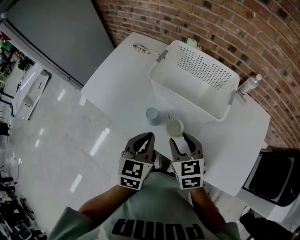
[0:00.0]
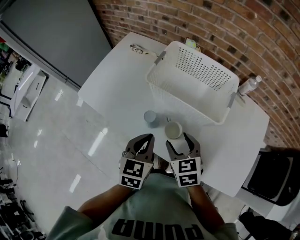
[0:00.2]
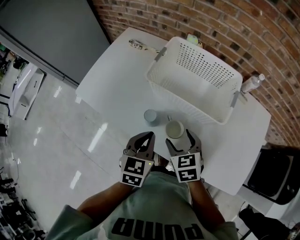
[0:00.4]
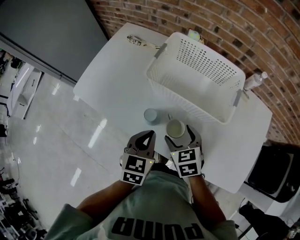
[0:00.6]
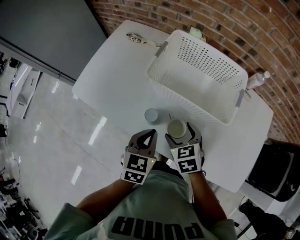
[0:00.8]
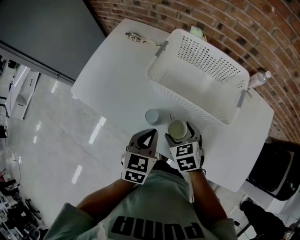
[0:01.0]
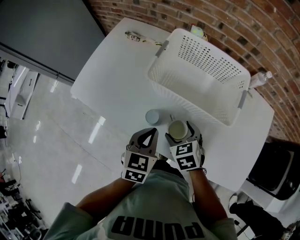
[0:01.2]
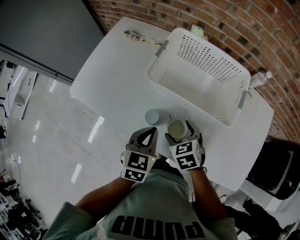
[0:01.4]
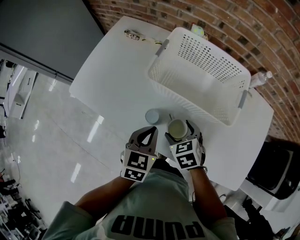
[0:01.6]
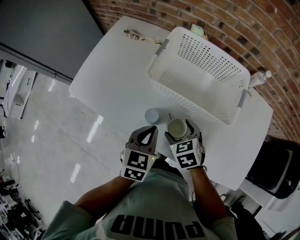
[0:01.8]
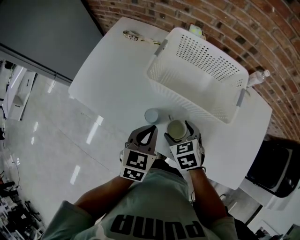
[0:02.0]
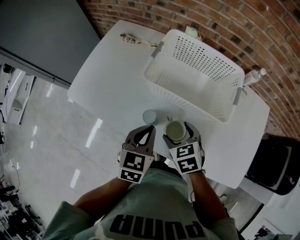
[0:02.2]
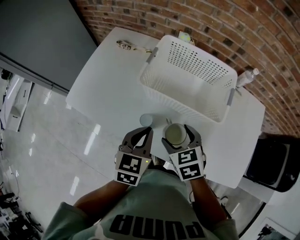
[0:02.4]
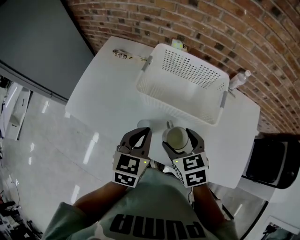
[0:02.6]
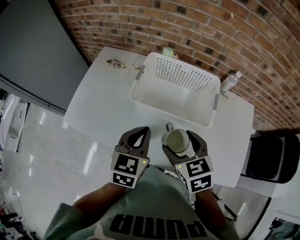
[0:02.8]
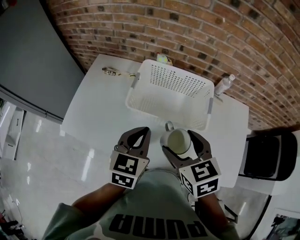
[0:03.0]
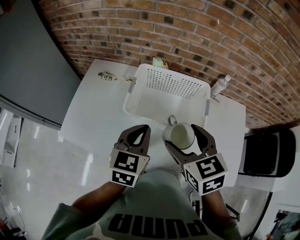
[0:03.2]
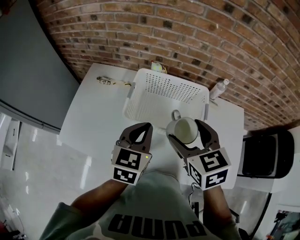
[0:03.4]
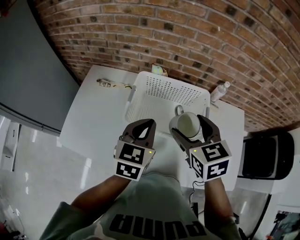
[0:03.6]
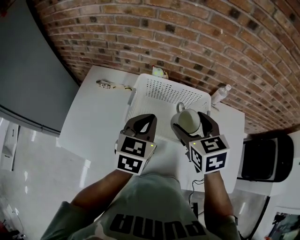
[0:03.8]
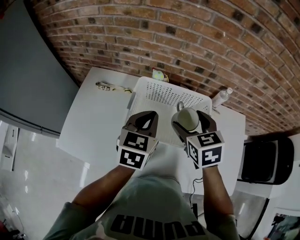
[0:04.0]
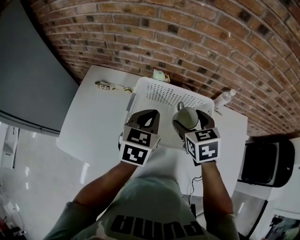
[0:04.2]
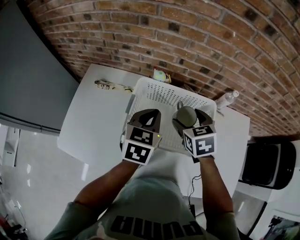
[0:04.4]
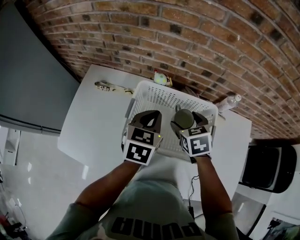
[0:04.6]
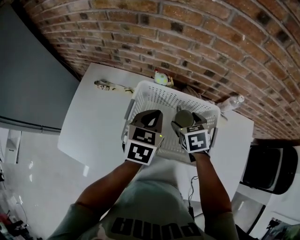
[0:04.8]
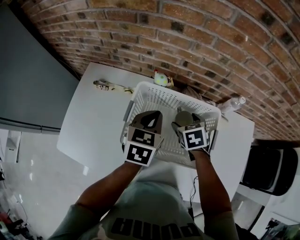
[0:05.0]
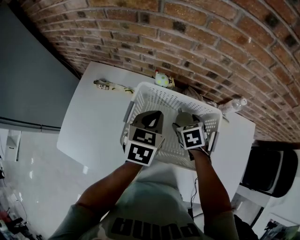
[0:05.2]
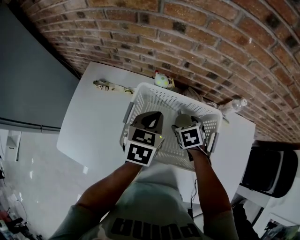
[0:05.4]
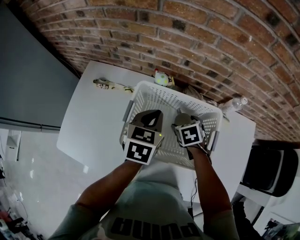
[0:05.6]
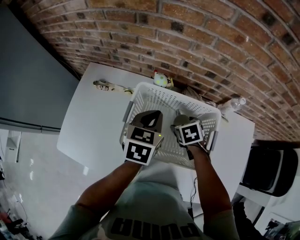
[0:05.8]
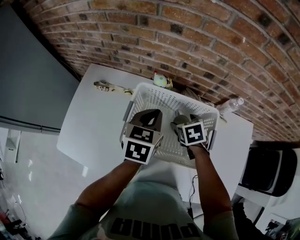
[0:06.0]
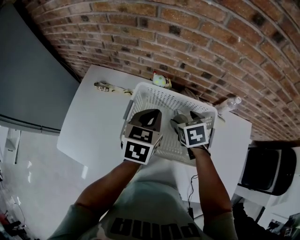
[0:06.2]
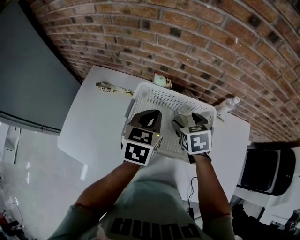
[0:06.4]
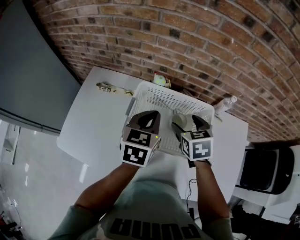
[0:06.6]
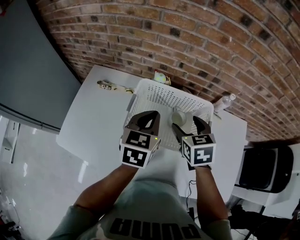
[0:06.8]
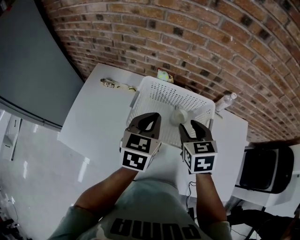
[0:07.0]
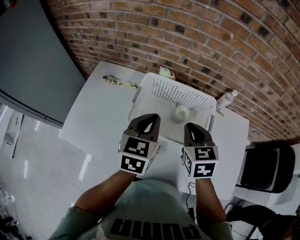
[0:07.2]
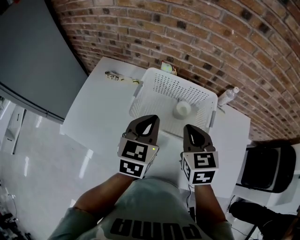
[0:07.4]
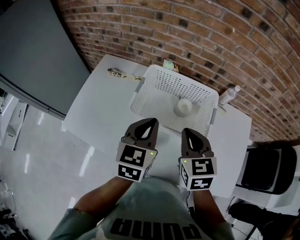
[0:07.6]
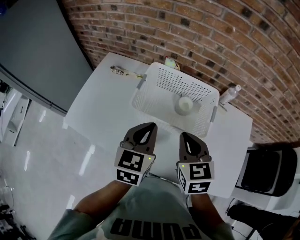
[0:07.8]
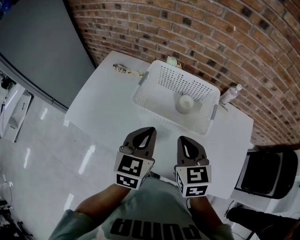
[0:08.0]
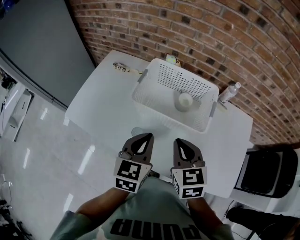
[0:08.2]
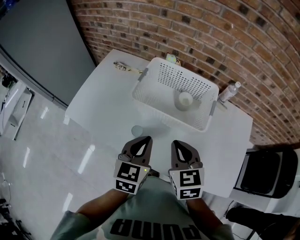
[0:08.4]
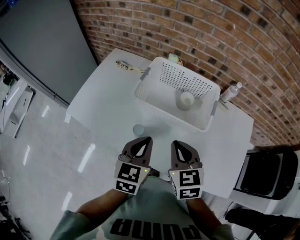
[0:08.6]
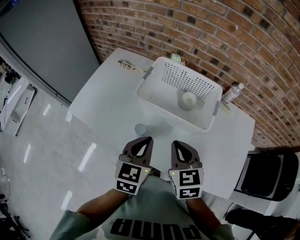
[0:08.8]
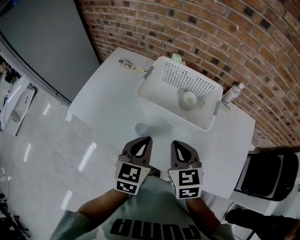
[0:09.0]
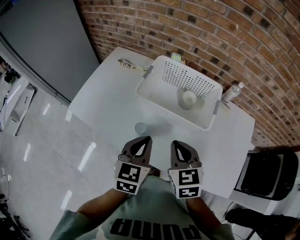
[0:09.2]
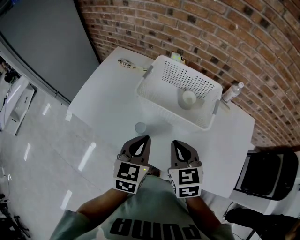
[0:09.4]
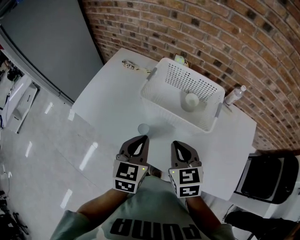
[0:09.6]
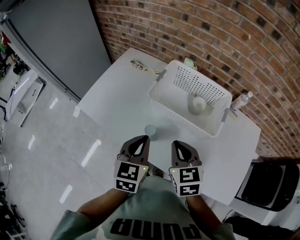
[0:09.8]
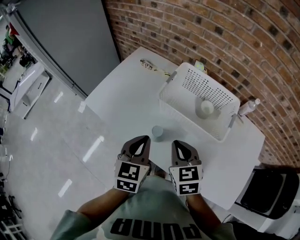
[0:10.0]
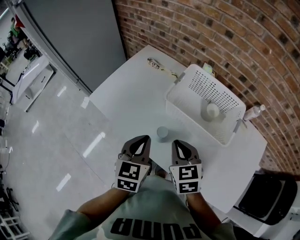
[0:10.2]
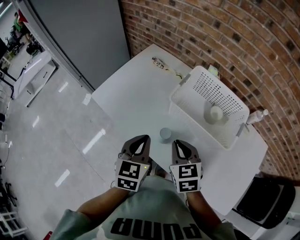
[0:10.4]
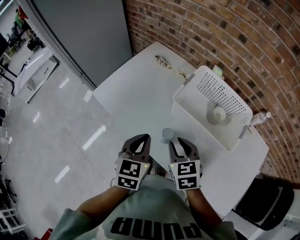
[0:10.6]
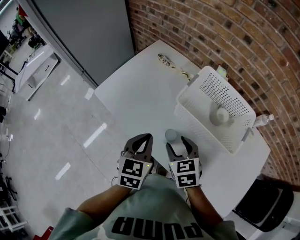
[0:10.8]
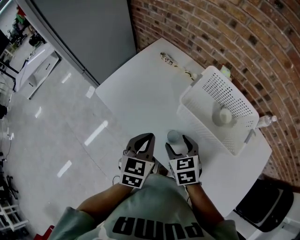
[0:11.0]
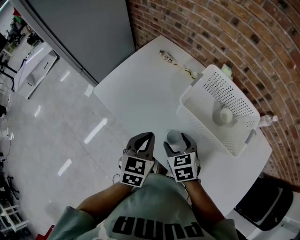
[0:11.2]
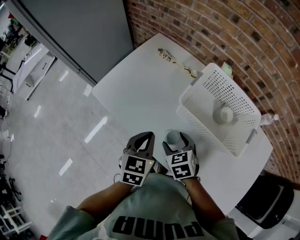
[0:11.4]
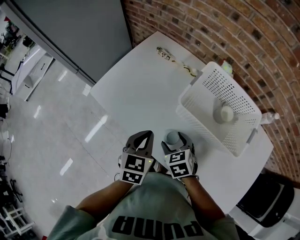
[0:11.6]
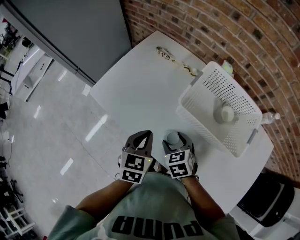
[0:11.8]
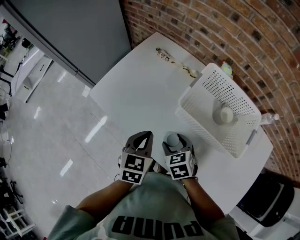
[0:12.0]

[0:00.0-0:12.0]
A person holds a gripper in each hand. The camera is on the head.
0:00.0 to 0:01.6: The grippers both shift downward and forward by approximately 10 cm. The right gripper opens its fingers.
0:01.6 to 0:03.0: The left gripper goes some 15 cm upward. Meanwhile the right gripper is displaced upward by roughly 20 cm, and swivels about 20 degrees.
0:03.0 to 0:04.4: The two grippers go roughly 20 cm forward.
0:04.4 to 0:06.0: The right gripper goes about 10 cm downward.
0:06.0 to 0:07.6: The right gripper moves backward and upward, about 25 cm, rotates about 30 degrees, and closes up, while the left gripper shifts some 15 cm backward.
0:07.6 to 0:09.0: The right gripper is displaced backward by about 10 cm. Meanwhile the left gripper heads backward and downward, covering roughly 15 cm.
0:09.0 to 0:10.4: Both grippers move to the left, roughly 10 cm.
0:10.4 to 0:12.0: The right gripper shifts roughly 10 cm downward, and opens. The left gripper goes roughly 10 cm downward and forward.

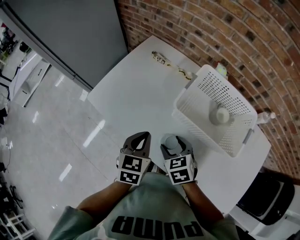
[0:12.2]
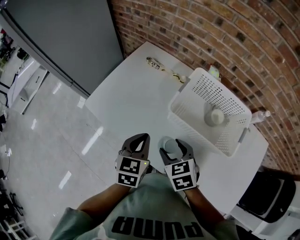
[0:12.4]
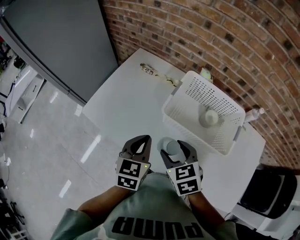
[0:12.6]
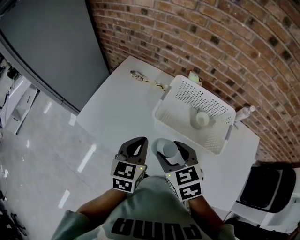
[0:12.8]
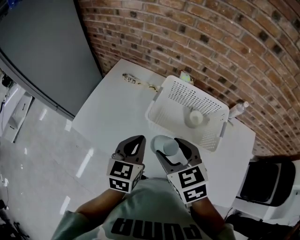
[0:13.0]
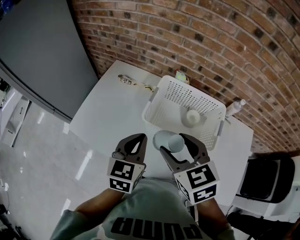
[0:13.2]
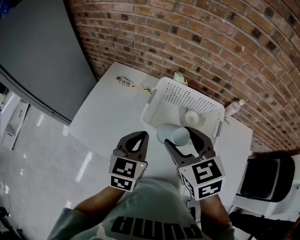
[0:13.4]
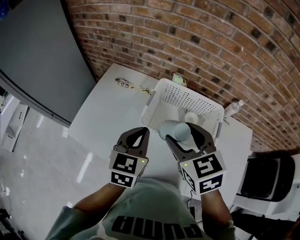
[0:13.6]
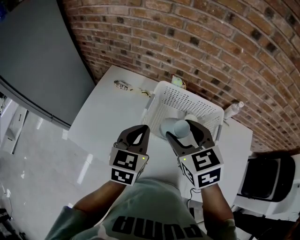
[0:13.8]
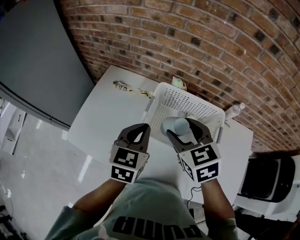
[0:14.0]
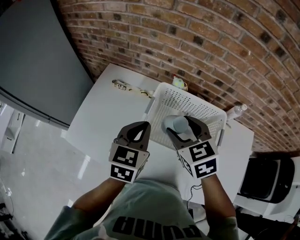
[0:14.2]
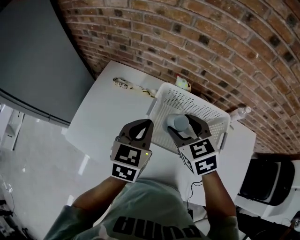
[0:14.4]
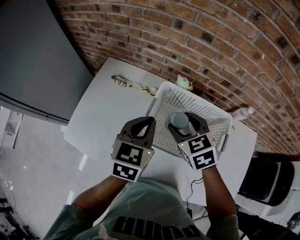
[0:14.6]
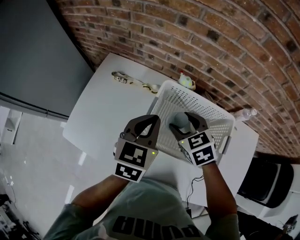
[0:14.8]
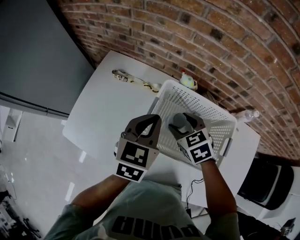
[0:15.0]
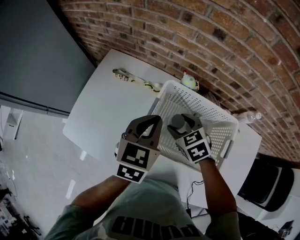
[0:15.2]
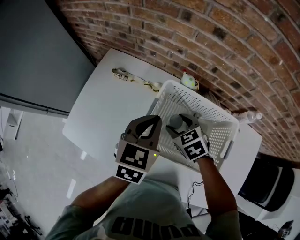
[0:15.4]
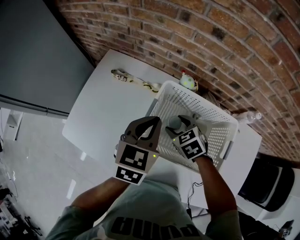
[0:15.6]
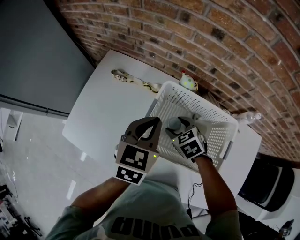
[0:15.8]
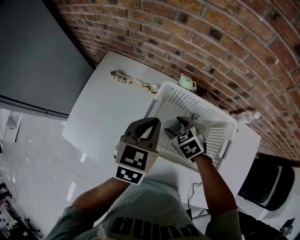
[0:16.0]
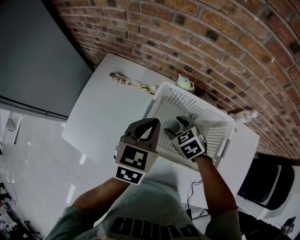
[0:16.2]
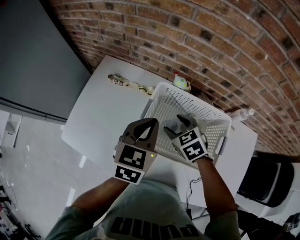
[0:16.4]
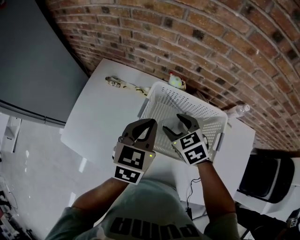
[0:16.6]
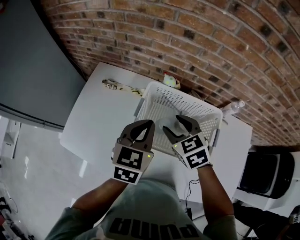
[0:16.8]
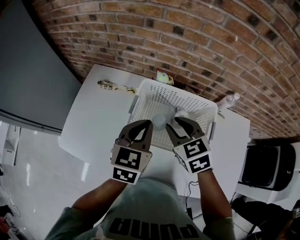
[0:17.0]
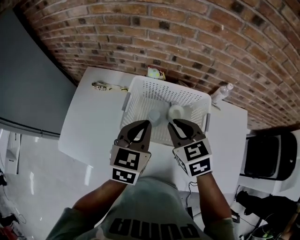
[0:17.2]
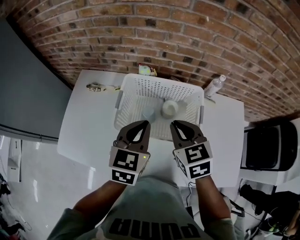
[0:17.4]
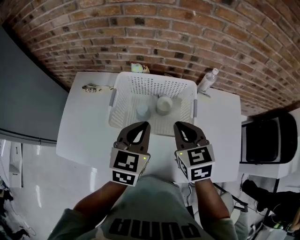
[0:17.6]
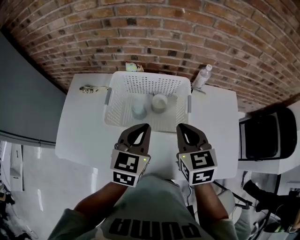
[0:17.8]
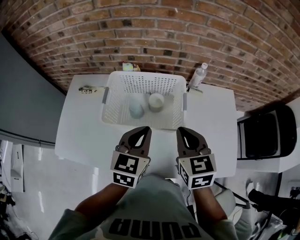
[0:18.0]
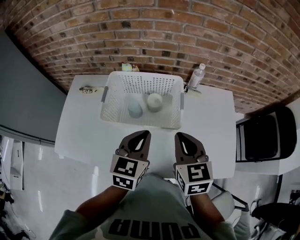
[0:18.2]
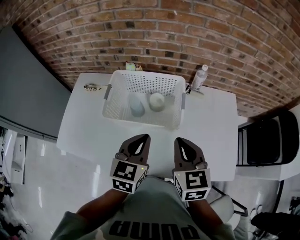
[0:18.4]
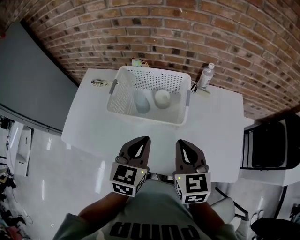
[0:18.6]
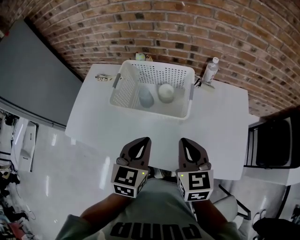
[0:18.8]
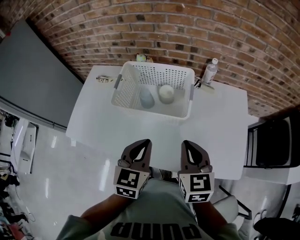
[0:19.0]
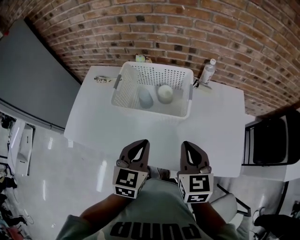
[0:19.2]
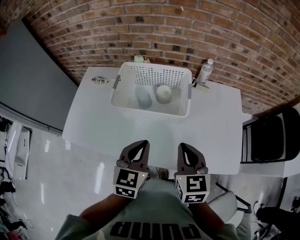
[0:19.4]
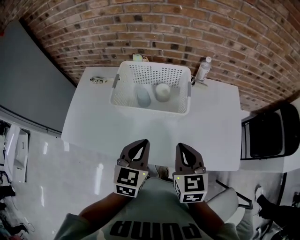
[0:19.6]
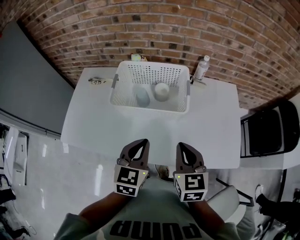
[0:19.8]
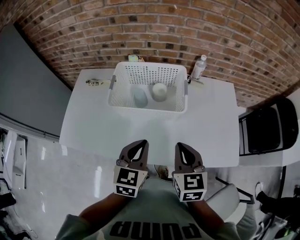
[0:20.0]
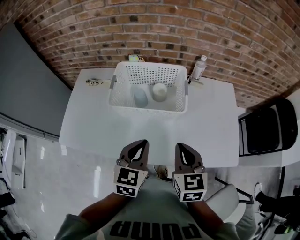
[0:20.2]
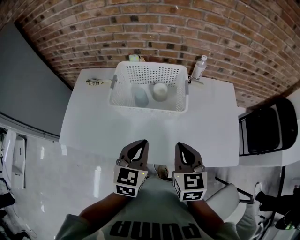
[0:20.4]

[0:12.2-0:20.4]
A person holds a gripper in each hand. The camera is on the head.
0:12.2 to 0:13.8: The left gripper is displaced upward, to the right and forward by approximately 20 cm, and turns by approximately 20 degrees, while the right gripper heads upward and to the right, covering some 25 cm, and swivels some 20 degrees.
0:13.8 to 0:15.4: The left gripper goes some 10 cm forward, while the right gripper goes approximately 25 cm downward and forward, and turns by about 20 degrees.
0:15.4 to 0:17.2: The right gripper travels upward, backward and to the right by roughly 15 cm, rotates roughly 20 degrees, and closes its fingers. Meanwhile the left gripper heads backward, covering approximately 10 cm.
0:17.2 to 0:18.8: Both grippers travel together backward and to the right, about 20 cm. The right gripper swivels about 20 degrees.
0:18.8 to 0:20.4: The right gripper shifts about 5 cm backward.

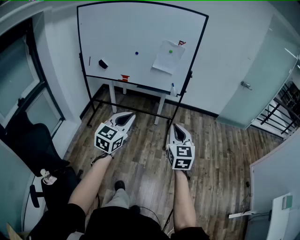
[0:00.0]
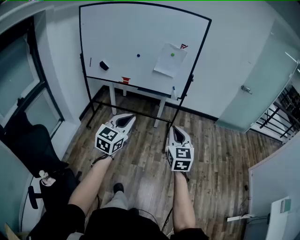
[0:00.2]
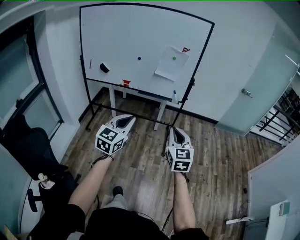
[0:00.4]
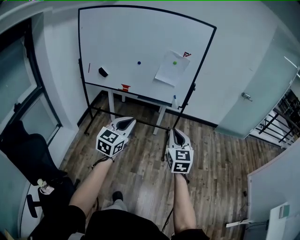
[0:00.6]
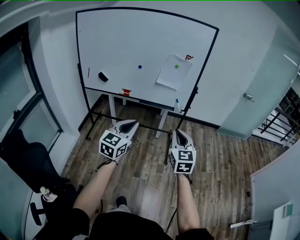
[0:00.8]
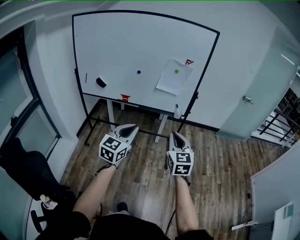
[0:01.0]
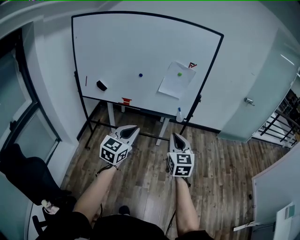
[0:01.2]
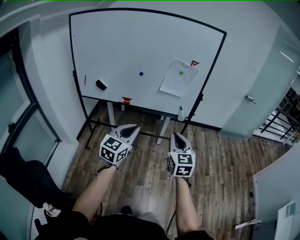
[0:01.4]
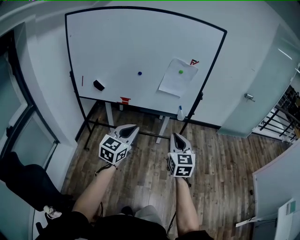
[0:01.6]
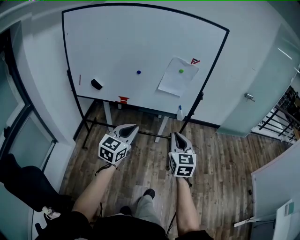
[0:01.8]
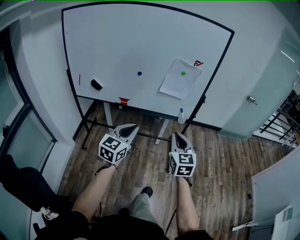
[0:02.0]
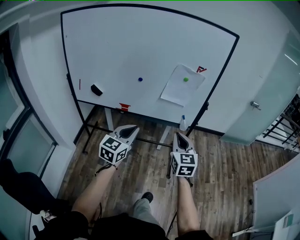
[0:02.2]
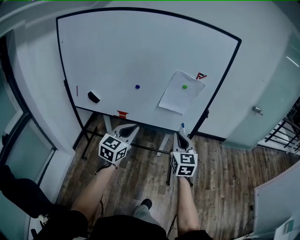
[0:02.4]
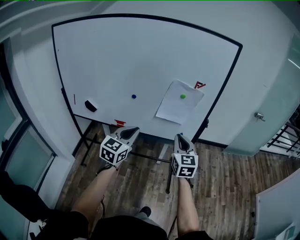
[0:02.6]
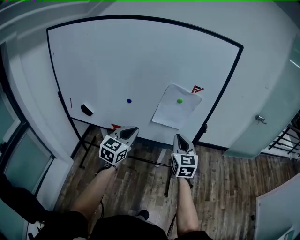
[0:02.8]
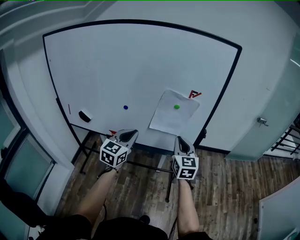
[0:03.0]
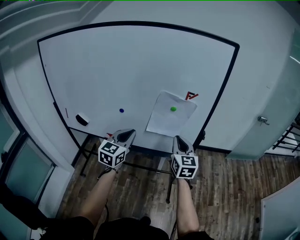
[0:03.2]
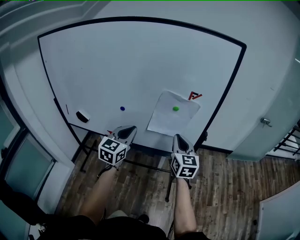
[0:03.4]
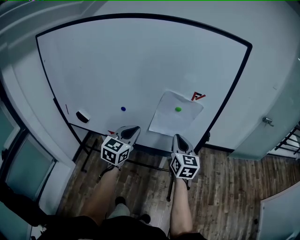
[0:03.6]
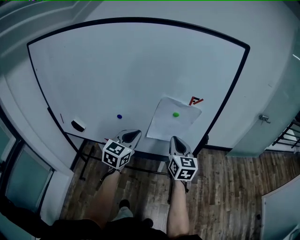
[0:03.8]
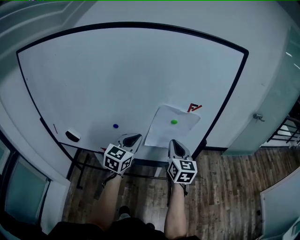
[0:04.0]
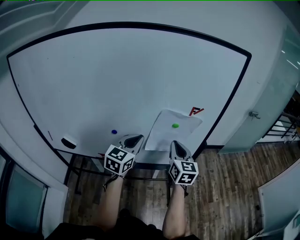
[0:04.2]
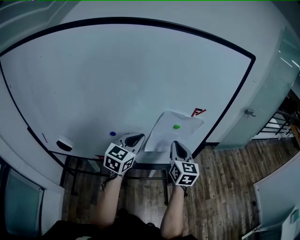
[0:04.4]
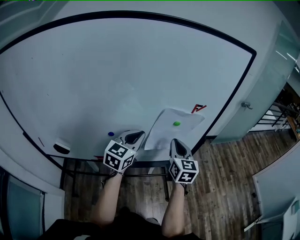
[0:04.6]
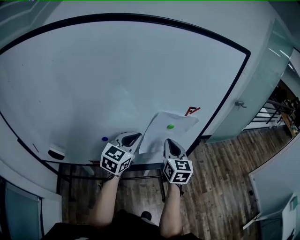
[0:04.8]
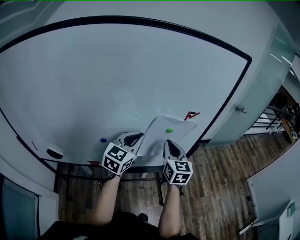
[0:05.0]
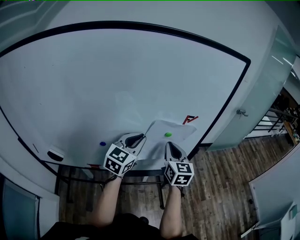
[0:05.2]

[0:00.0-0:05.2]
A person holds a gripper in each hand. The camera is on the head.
0:00.0 to 0:01.8: The grippers both shift forward and to the left by some 30 cm.
0:01.8 to 0:03.4: The grippers both shift forward by roughly 35 cm.
0:03.4 to 0:05.2: The left gripper shifts approximately 15 cm forward, and rotates roughly 20 degrees. Meanwhile the right gripper moves forward and to the left, about 15 cm.
